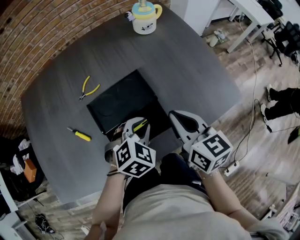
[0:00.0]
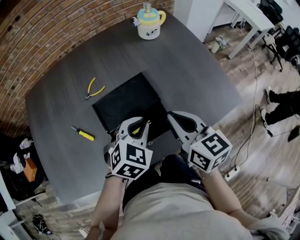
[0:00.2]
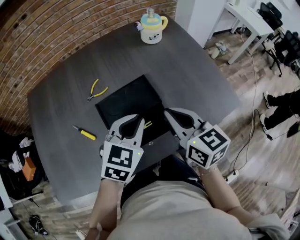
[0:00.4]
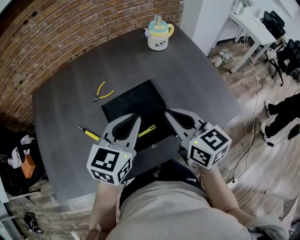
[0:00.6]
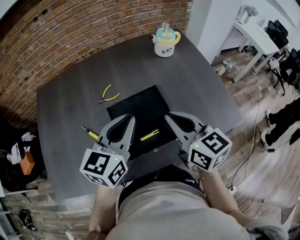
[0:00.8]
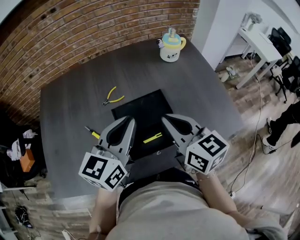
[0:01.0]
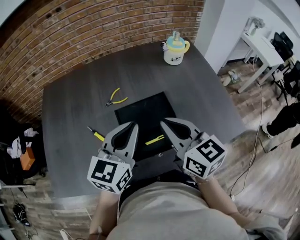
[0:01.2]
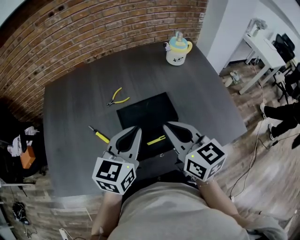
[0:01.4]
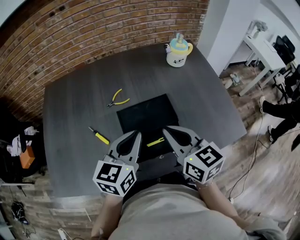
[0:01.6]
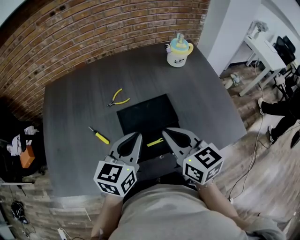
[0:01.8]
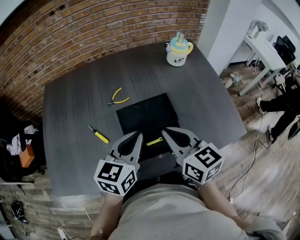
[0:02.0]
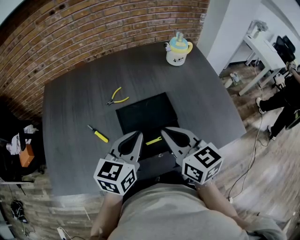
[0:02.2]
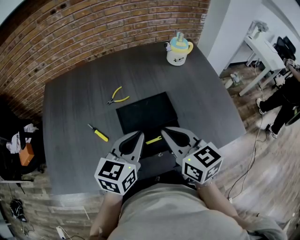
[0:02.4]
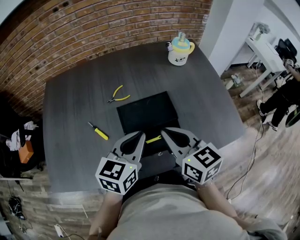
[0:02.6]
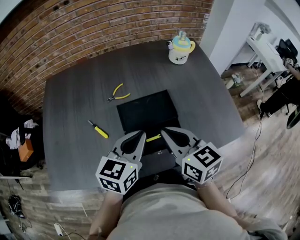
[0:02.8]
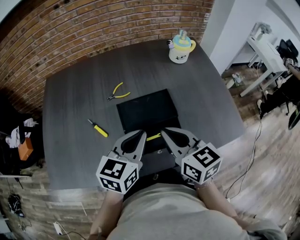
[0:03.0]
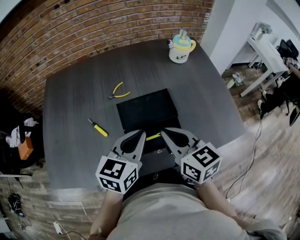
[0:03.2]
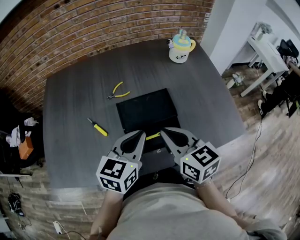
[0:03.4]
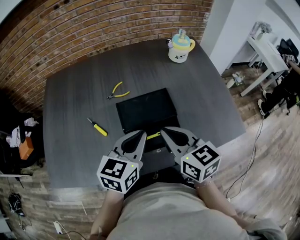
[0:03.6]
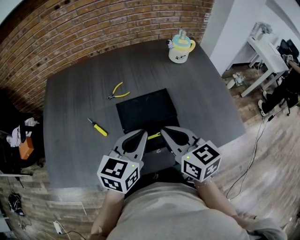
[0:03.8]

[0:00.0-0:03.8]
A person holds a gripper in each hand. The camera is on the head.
0:00.0 to 0:01.2: The left gripper is displaced upward and to the left by some 20 cm, and points its fingers about 40 degrees further upward, while the right gripper is displaced to the left and upward by some 15 cm.
0:01.2 to 0:02.6: The left gripper heads downward, covering some 5 cm.
0:02.6 to 0:03.8: Both grippers stay put.

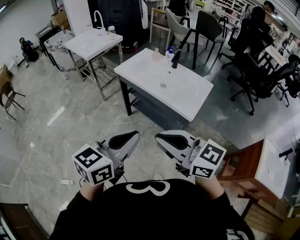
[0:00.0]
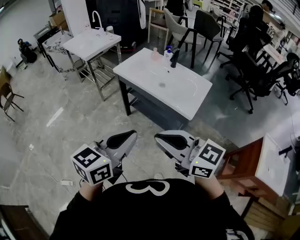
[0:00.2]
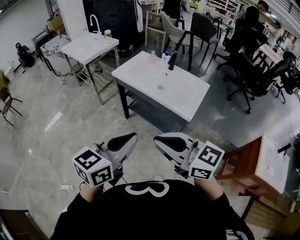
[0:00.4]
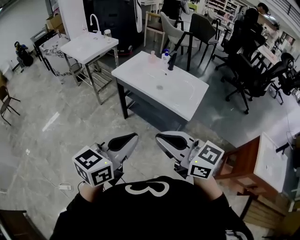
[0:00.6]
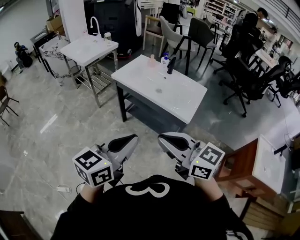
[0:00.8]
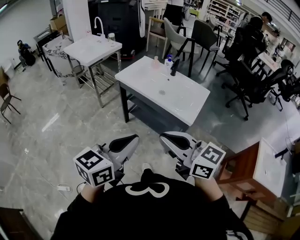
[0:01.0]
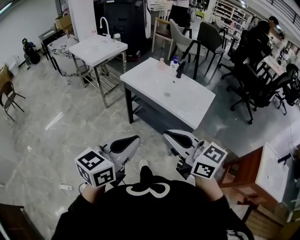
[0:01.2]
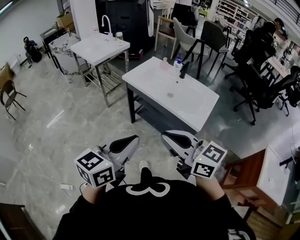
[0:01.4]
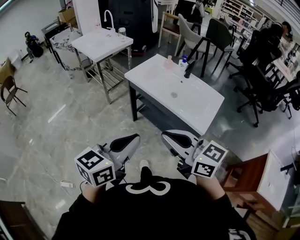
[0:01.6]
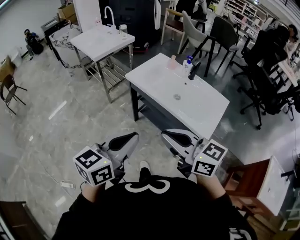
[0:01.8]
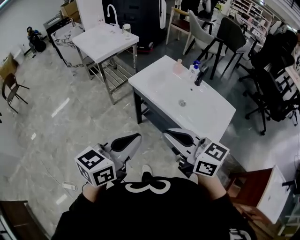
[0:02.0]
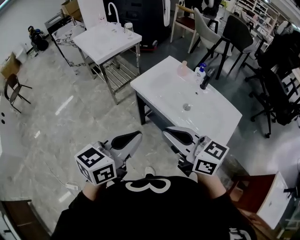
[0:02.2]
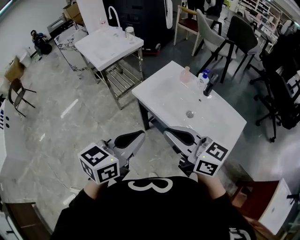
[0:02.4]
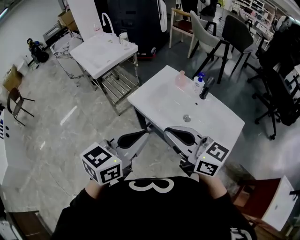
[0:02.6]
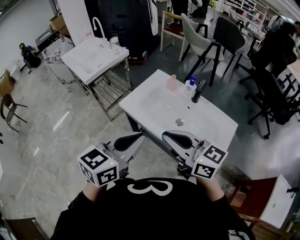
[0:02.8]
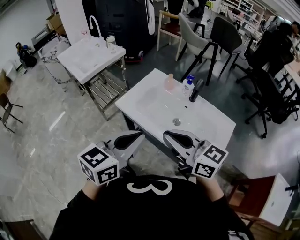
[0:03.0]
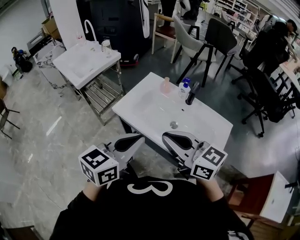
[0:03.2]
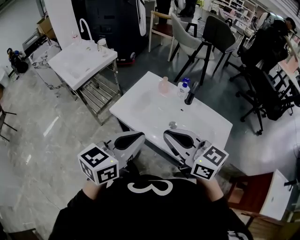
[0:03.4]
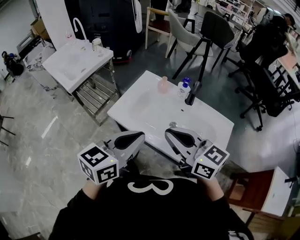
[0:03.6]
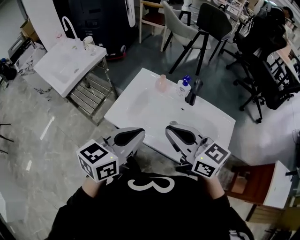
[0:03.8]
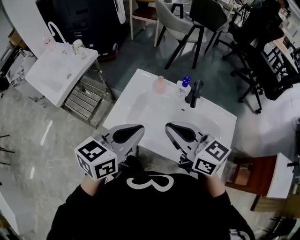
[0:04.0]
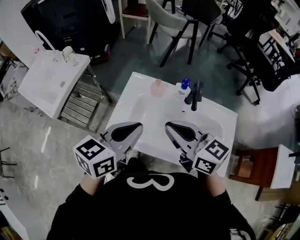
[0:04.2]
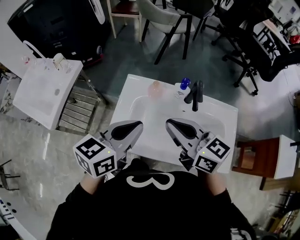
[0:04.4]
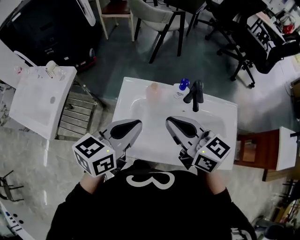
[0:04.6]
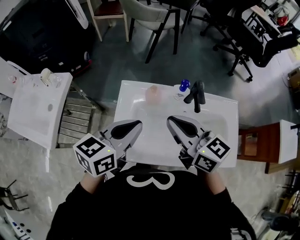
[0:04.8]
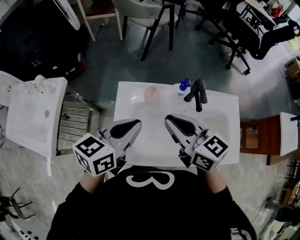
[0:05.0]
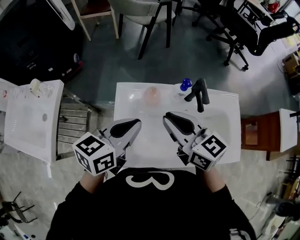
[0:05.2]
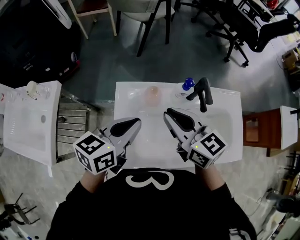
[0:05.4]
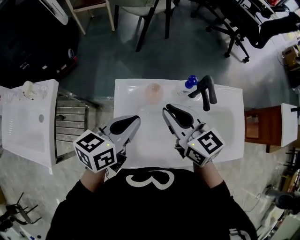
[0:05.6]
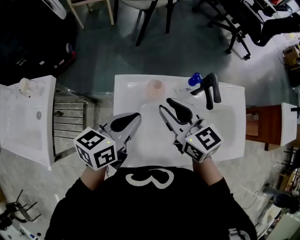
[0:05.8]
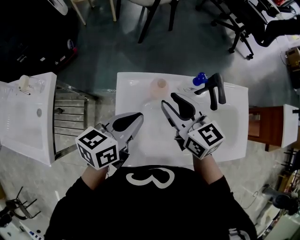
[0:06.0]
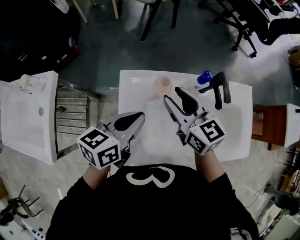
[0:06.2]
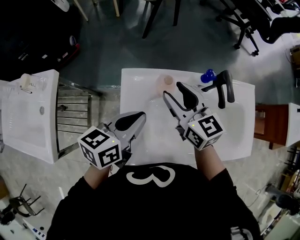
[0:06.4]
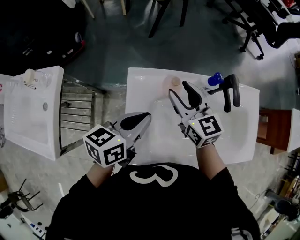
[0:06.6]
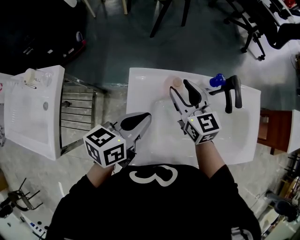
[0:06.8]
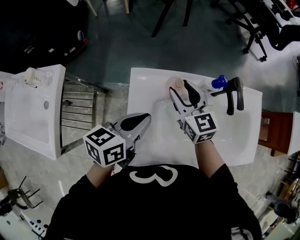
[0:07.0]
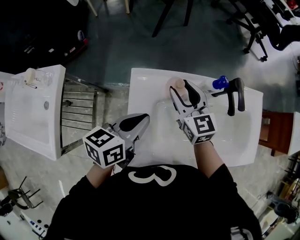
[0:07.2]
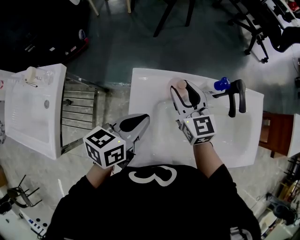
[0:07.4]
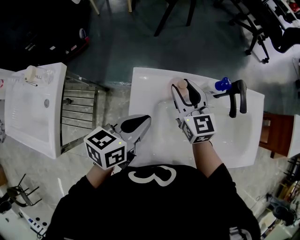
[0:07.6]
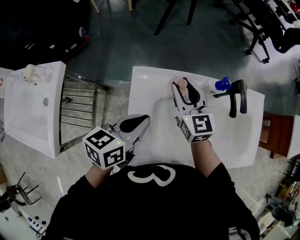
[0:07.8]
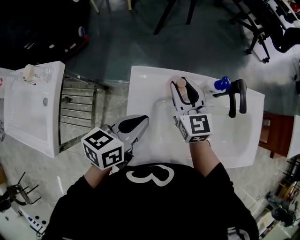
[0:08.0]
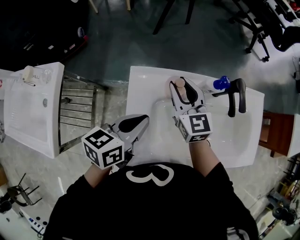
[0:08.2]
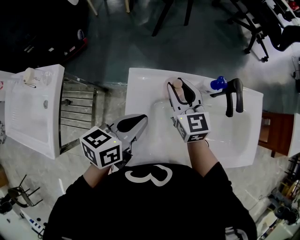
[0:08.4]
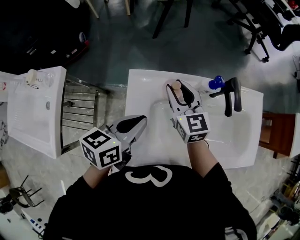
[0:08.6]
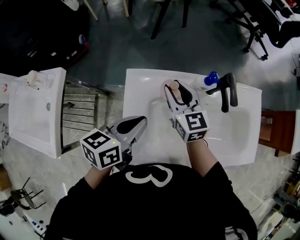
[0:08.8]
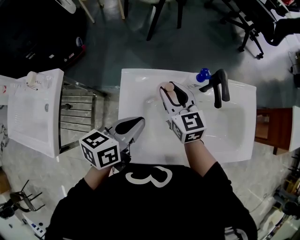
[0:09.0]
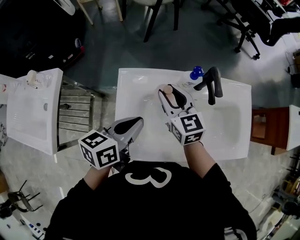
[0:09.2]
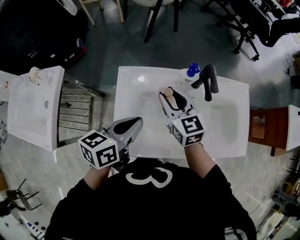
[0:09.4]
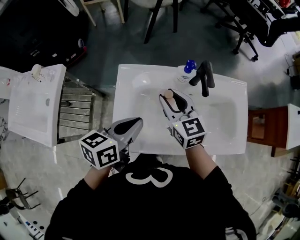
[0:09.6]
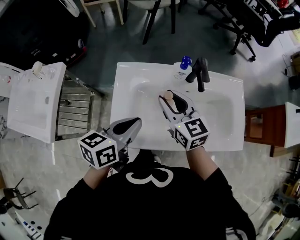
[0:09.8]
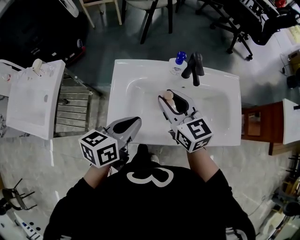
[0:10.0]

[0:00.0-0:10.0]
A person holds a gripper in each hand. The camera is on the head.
0:00.0 to 0:01.4: The right gripper shifts by about 5 cm, while the left gripper shifts roughly 5 cm to the left.
0:01.4 to 0:02.8: Both grippers travel together forward, approximately 30 cm.
0:02.8 to 0:04.2: The grippers both shift forward by approximately 25 cm. The left gripper rotates some 20 degrees, while the right gripper swivels some 20 degrees.
0:04.2 to 0:05.8: Both grippers travel together forward and downward, some 20 cm. The right gripper turns by roughly 30 degrees. The left gripper turns by roughly 20 degrees.
0:05.8 to 0:07.2: The left gripper goes roughly 5 cm downward; the right gripper goes about 10 cm downward and forward, and opens up.
0:07.2 to 0:08.6: The two grippers keep their place.
0:08.6 to 0:10.0: The left gripper goes roughly 15 cm backward and to the right. The right gripper shifts some 20 cm backward, upward and to the right.

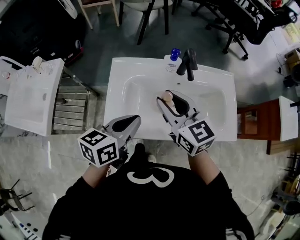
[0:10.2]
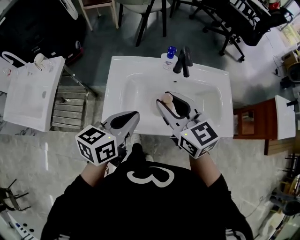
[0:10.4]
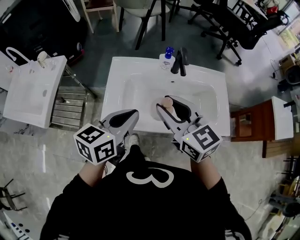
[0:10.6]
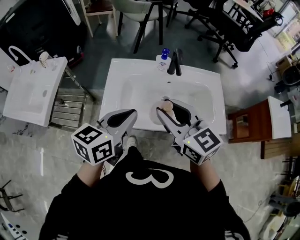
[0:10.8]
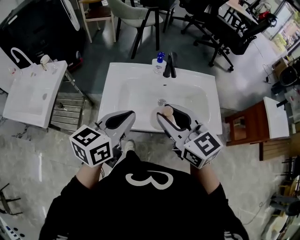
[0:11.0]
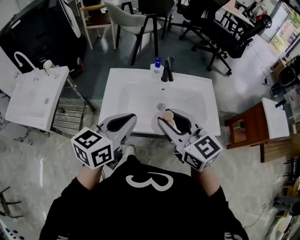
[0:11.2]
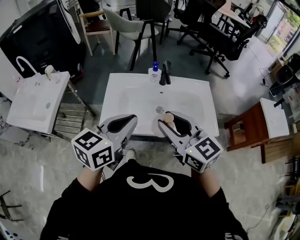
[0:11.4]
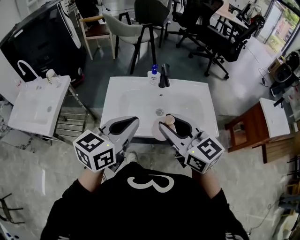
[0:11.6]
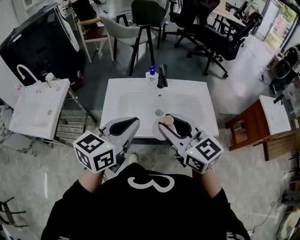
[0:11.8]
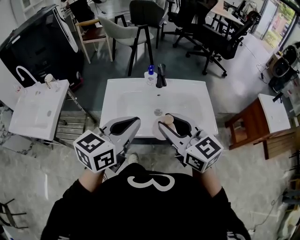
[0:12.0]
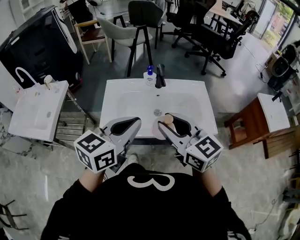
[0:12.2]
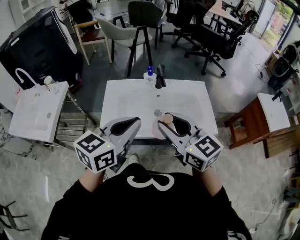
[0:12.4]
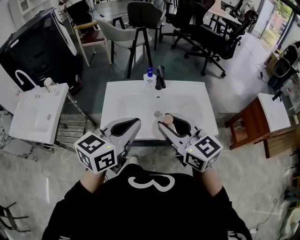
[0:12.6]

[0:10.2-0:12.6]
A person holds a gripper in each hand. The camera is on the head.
0:10.2 to 0:11.4: The left gripper is displaced upward and backward by about 15 cm, and changes its angle by some 20 degrees. The right gripper moves backward and upward, roughly 20 cm.
0:11.4 to 0:12.6: There are only small adjustments of the grippers.

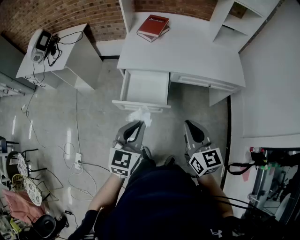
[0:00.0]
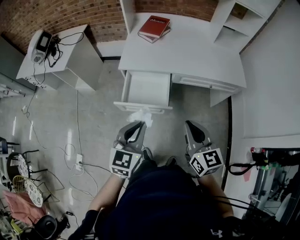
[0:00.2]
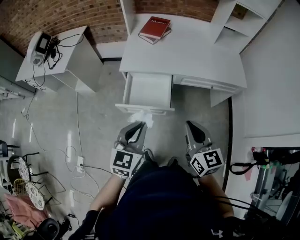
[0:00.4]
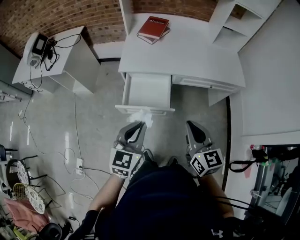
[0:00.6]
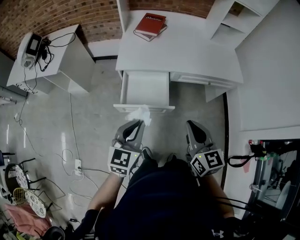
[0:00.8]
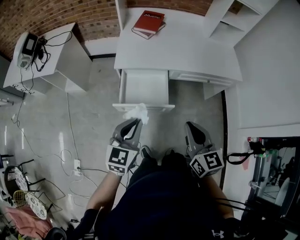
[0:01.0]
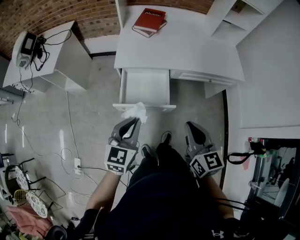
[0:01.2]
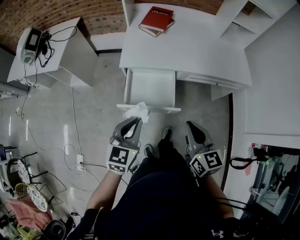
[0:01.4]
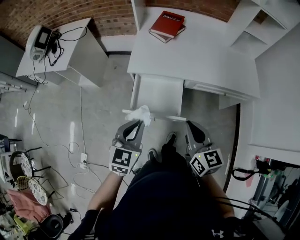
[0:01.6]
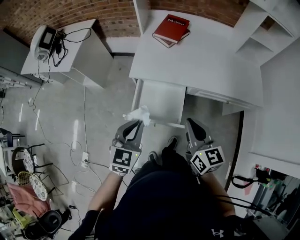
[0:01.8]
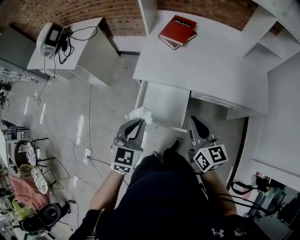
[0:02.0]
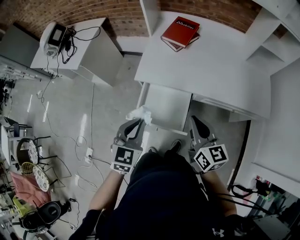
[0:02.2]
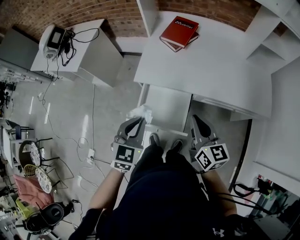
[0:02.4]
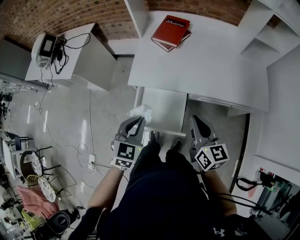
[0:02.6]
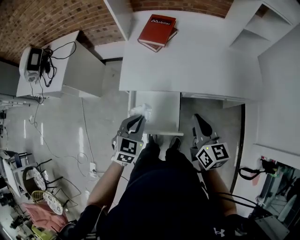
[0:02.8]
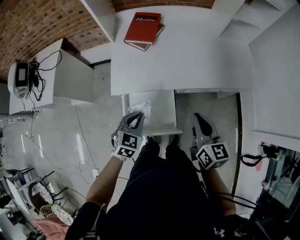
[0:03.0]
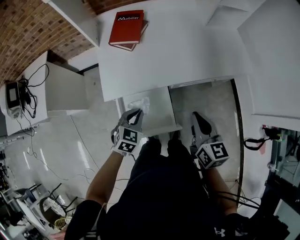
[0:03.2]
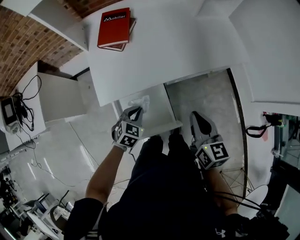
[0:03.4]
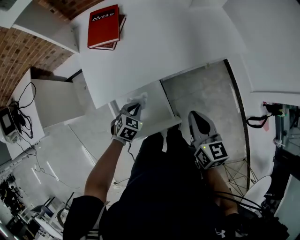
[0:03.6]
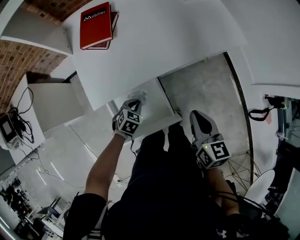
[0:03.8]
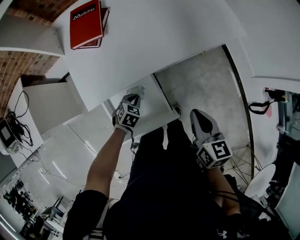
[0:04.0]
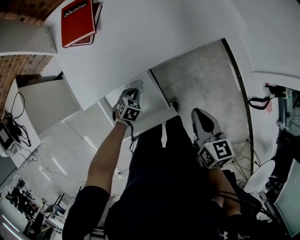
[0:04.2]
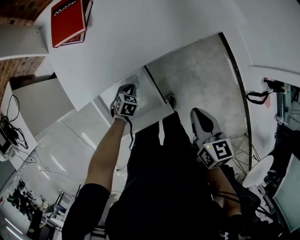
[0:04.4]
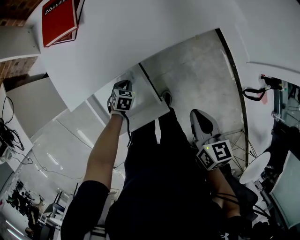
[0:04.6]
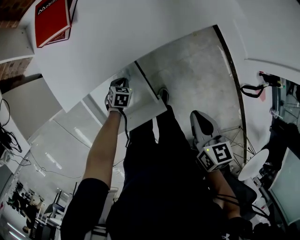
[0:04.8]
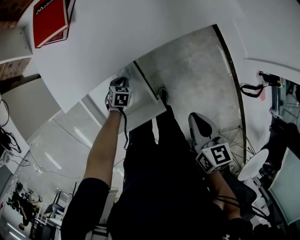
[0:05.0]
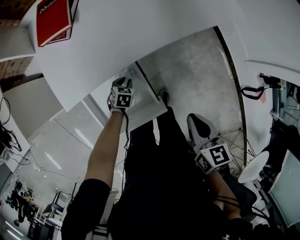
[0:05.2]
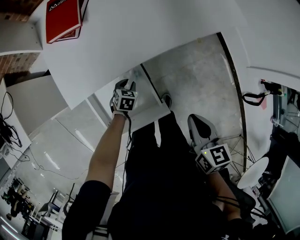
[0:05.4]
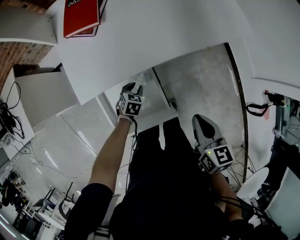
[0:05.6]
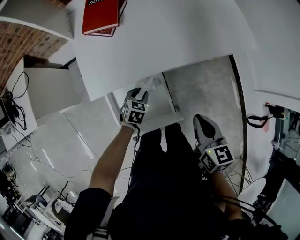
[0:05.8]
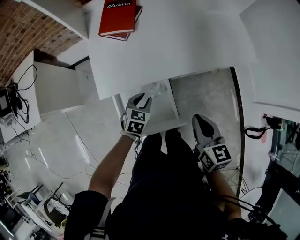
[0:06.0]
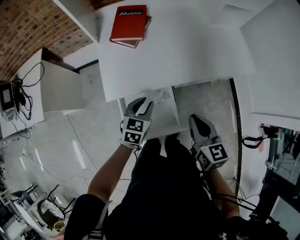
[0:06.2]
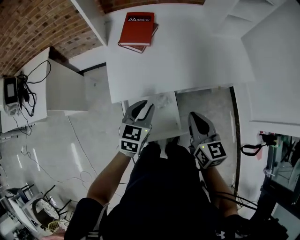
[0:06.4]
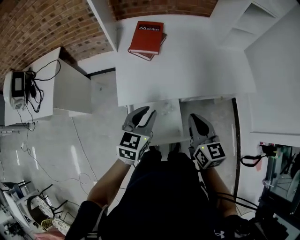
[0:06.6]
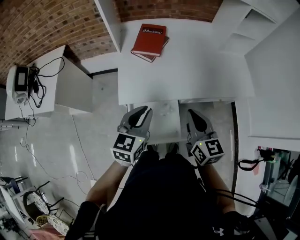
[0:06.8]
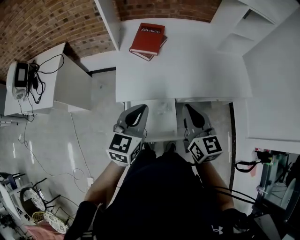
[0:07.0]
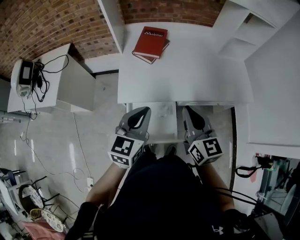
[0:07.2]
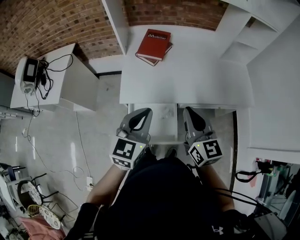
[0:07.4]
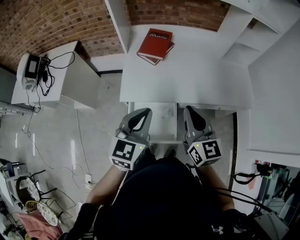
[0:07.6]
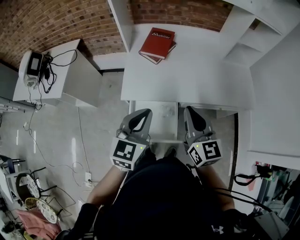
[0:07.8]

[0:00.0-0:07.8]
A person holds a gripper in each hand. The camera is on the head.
0:00.0 to 0:01.6: The two grippers go approximately 10 cm forward and to the left.
0:01.6 to 0:03.2: The left gripper ends up roughly 25 cm from where it was, and turns by approximately 30 degrees. The right gripper changes place by approximately 15 cm, and swivels some 20 degrees.
0:03.2 to 0:04.6: The right gripper heads downward and to the right, covering roughly 15 cm, and turns by approximately 20 degrees, while the left gripper heads downward, covering about 25 cm, and rotates some 20 degrees.
0:04.6 to 0:06.2: The right gripper is displaced to the left and upward by about 15 cm, and rotates roughly 20 degrees; the left gripper moves upward, about 25 cm, swivels some 30 degrees, and opens its fingers.
0:06.2 to 0:07.8: The right gripper heads upward, covering roughly 15 cm, and rotates approximately 30 degrees. The left gripper travels upward by approximately 25 cm, changes its angle by roughly 20 degrees, and closes up.
